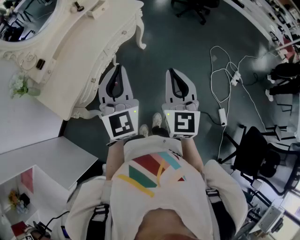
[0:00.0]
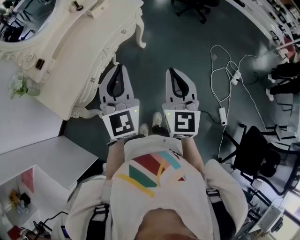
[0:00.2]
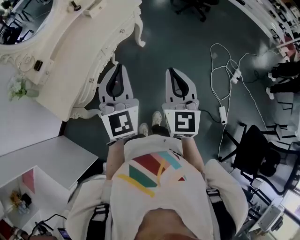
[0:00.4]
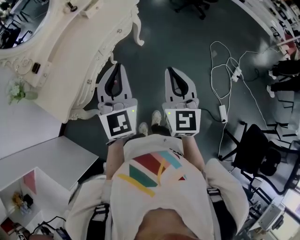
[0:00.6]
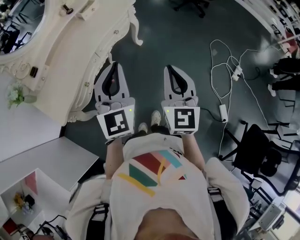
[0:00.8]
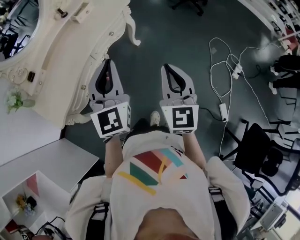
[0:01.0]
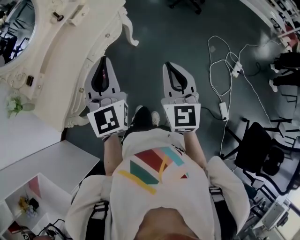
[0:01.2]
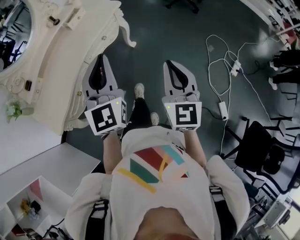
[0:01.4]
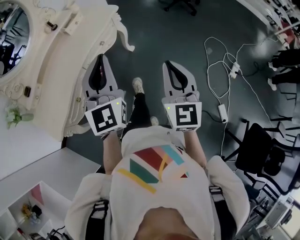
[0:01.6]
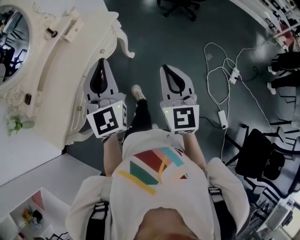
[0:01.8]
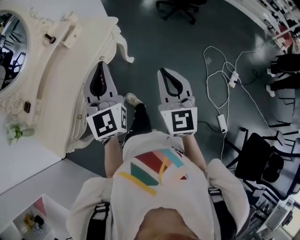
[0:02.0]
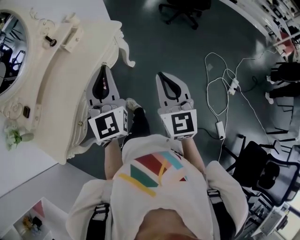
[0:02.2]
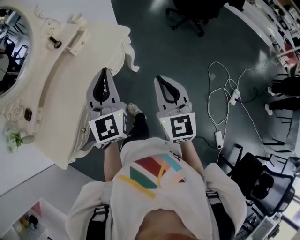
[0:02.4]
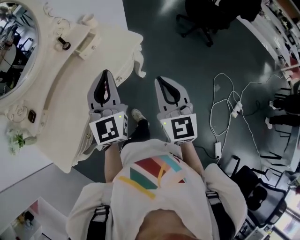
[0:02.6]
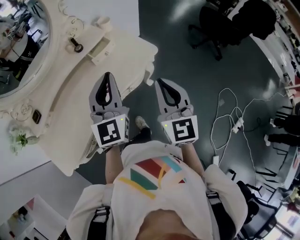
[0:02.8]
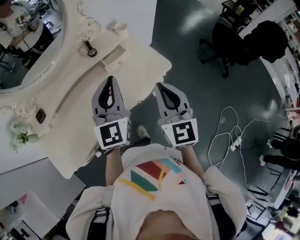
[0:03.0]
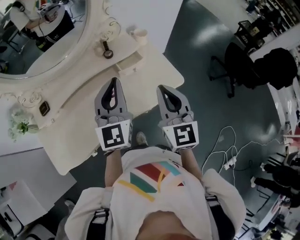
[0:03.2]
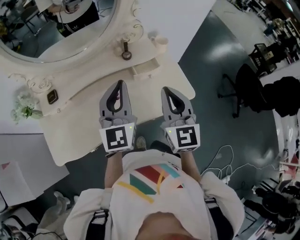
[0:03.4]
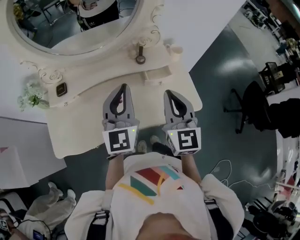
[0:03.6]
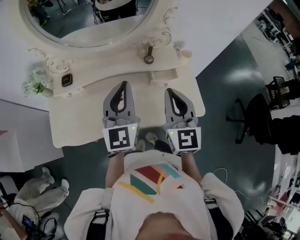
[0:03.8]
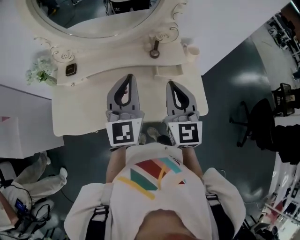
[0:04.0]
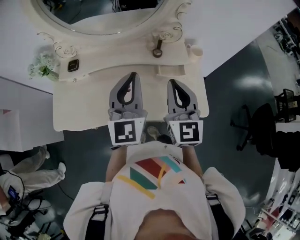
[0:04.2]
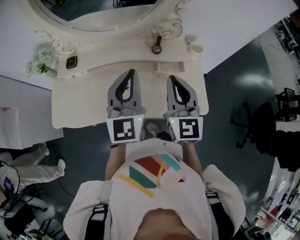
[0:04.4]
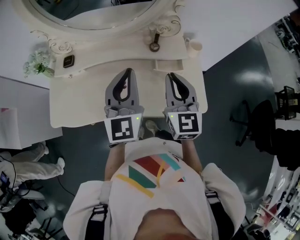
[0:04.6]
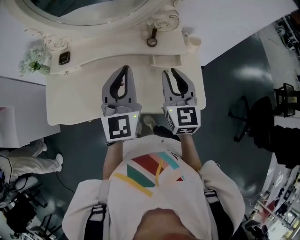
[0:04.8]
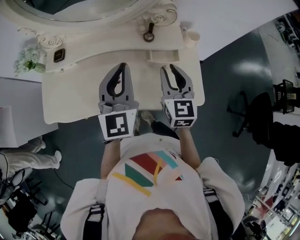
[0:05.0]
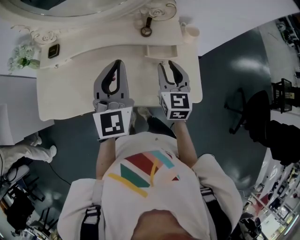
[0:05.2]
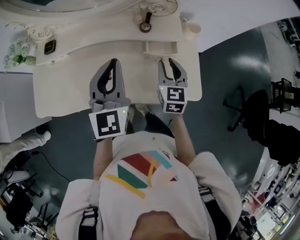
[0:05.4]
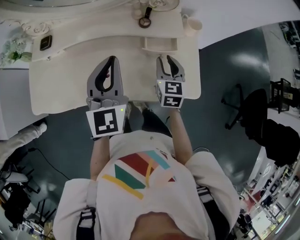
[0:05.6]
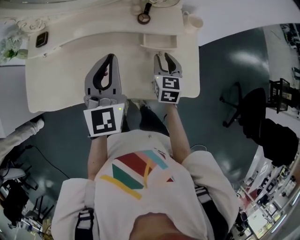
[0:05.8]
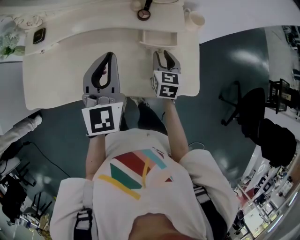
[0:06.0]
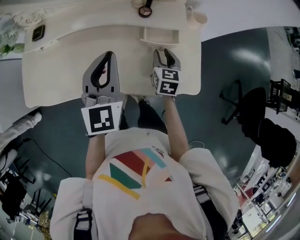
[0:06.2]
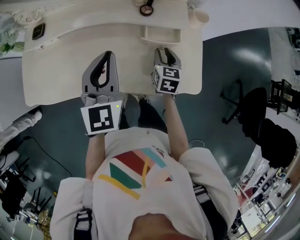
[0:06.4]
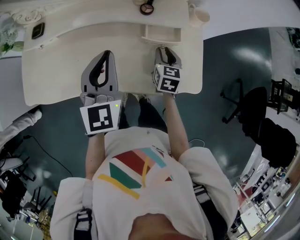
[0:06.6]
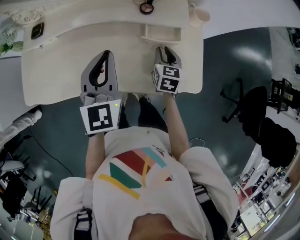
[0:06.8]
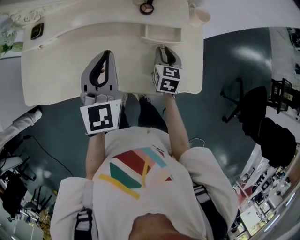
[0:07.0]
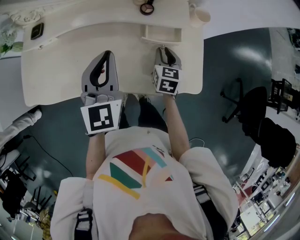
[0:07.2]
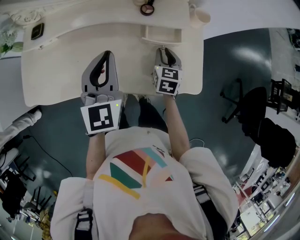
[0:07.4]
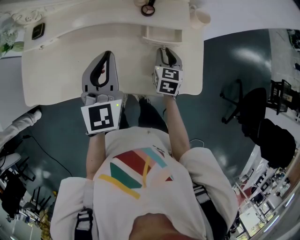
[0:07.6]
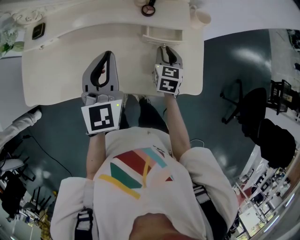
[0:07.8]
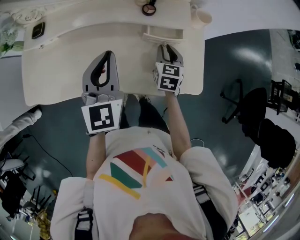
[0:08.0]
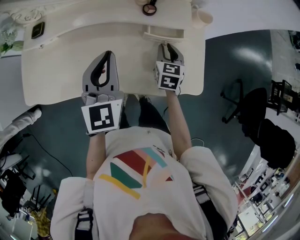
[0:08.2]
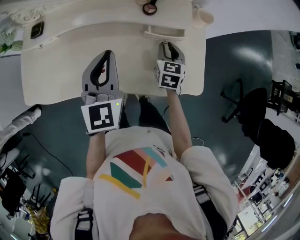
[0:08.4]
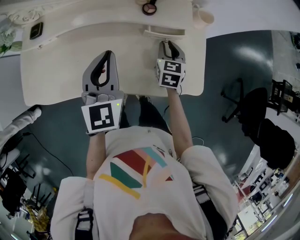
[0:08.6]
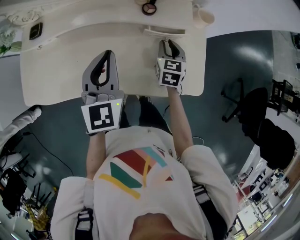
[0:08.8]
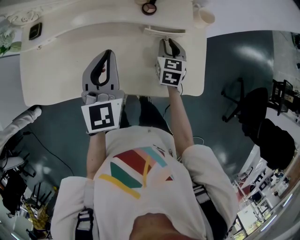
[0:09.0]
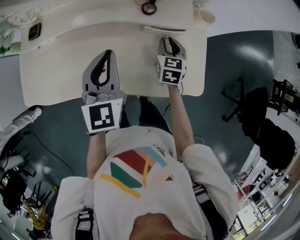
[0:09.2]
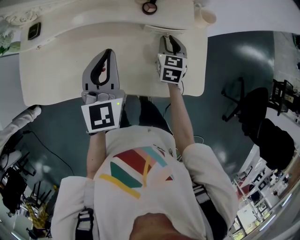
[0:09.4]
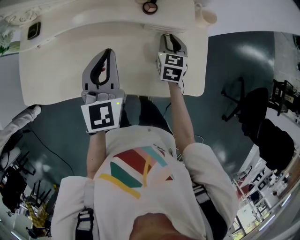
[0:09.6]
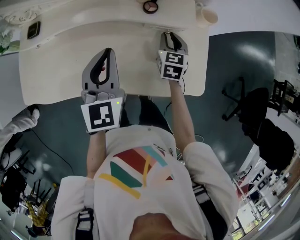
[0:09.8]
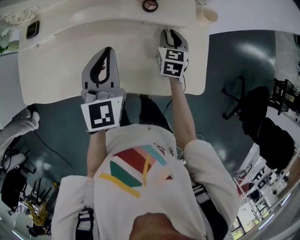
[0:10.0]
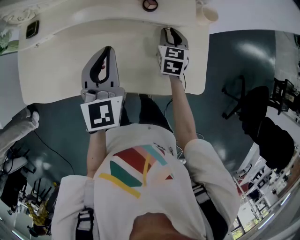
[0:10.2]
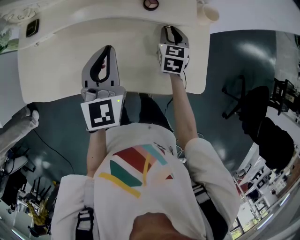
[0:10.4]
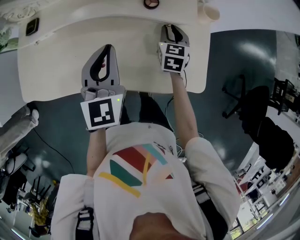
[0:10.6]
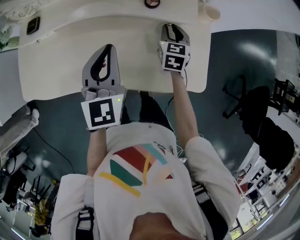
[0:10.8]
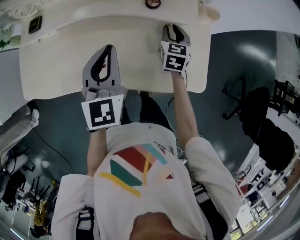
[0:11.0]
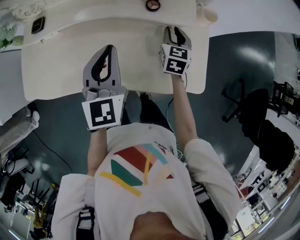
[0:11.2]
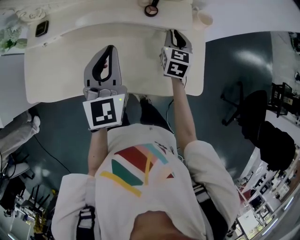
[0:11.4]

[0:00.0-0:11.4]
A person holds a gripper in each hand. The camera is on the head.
0:00.0 to 0:01.4: The left gripper moves forward and to the right, some 15 cm. Meanwhile the right gripper heads to the right and forward, covering about 15 cm.
0:01.4 to 0:02.8: The two grippers go about 35 cm forward. The right gripper turns by about 20 degrees.
0:02.8 to 0:04.2: The left gripper changes place by roughly 20 cm, and rotates some 40 degrees. Meanwhile the right gripper changes place by some 25 cm, and changes its angle by some 40 degrees.
0:04.2 to 0:05.6: The left gripper is displaced downward by roughly 10 cm, while the right gripper heads downward, covering approximately 20 cm, rotates roughly 30 degrees, and opens up.
0:05.6 to 0:07.2: The right gripper moves downward, approximately 10 cm.
0:07.2 to 0:08.6: The grippers make only small movements.
0:08.6 to 0:10.0: The grippers move only a little.
0:10.0 to 0:11.4: The right gripper shifts roughly 5 cm upward.

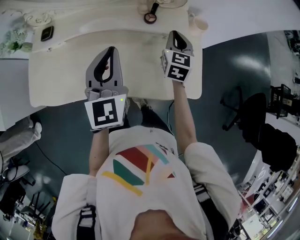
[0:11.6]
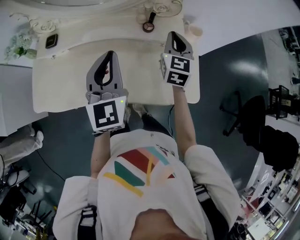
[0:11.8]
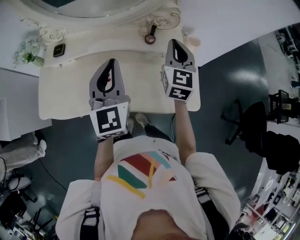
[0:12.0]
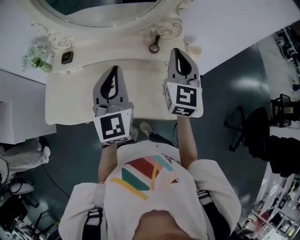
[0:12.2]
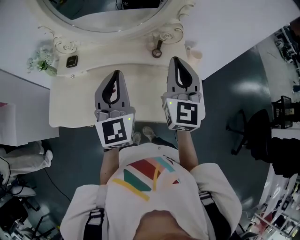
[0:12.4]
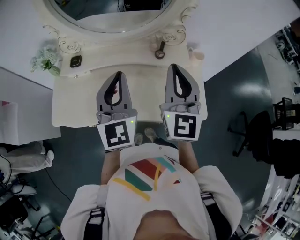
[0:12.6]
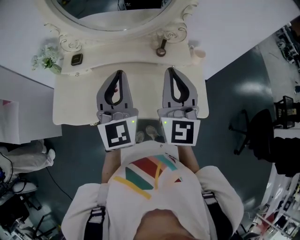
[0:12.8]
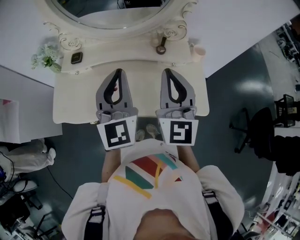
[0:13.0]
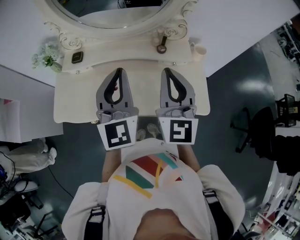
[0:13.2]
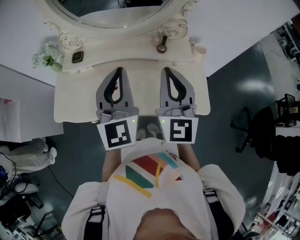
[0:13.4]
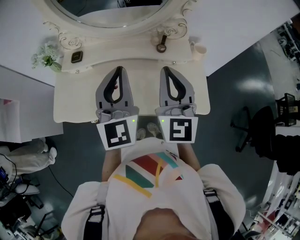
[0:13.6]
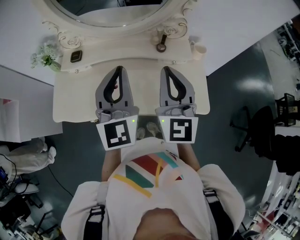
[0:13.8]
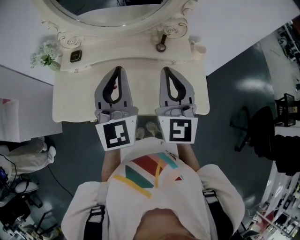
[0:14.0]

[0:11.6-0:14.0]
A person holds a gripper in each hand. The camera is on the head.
0:11.6 to 0:12.8: The right gripper is displaced upward, backward and to the left by about 30 cm, and turns by roughly 30 degrees. The left gripper heads upward and backward, covering about 10 cm.
0:12.8 to 0:14.0: The grippers move only a little.

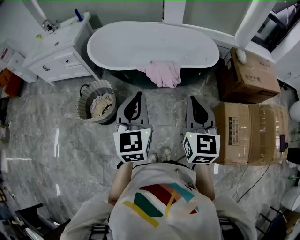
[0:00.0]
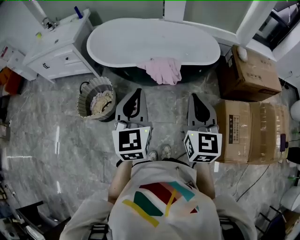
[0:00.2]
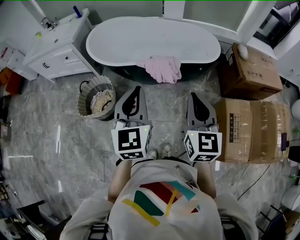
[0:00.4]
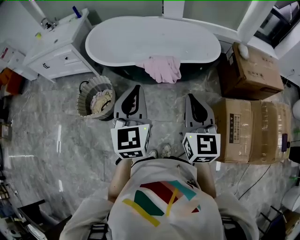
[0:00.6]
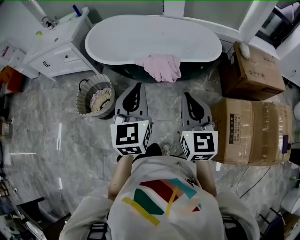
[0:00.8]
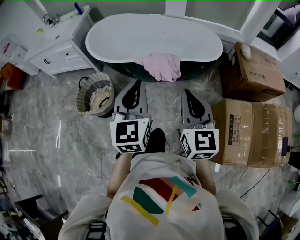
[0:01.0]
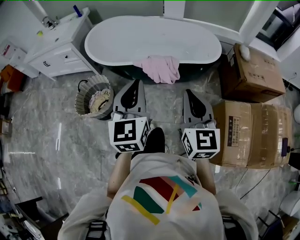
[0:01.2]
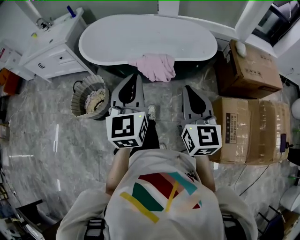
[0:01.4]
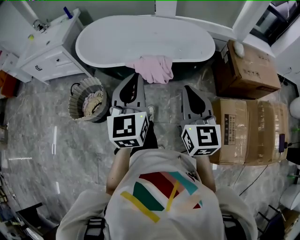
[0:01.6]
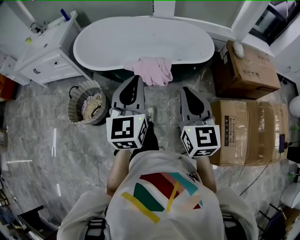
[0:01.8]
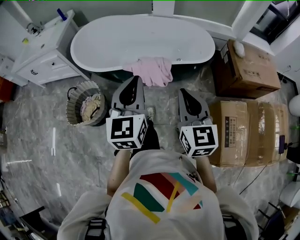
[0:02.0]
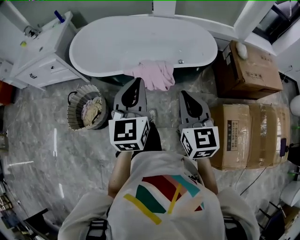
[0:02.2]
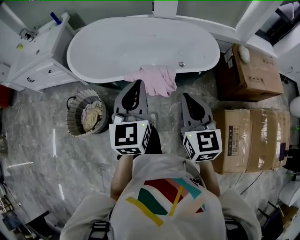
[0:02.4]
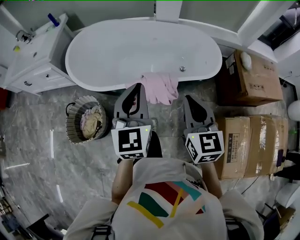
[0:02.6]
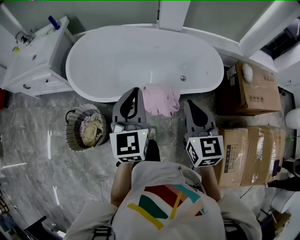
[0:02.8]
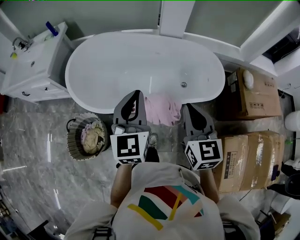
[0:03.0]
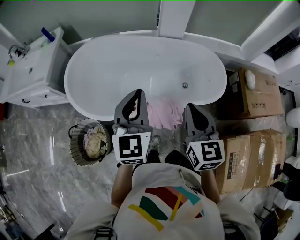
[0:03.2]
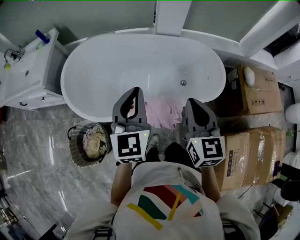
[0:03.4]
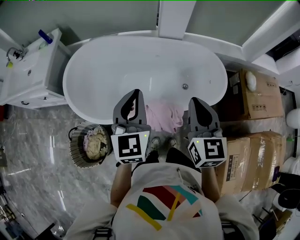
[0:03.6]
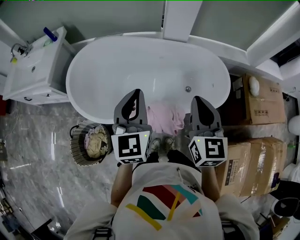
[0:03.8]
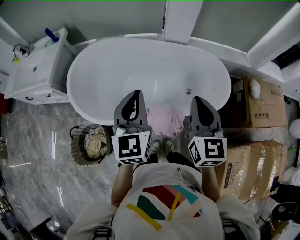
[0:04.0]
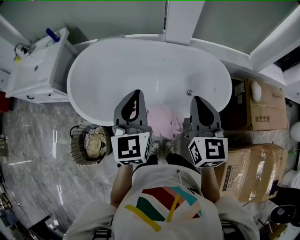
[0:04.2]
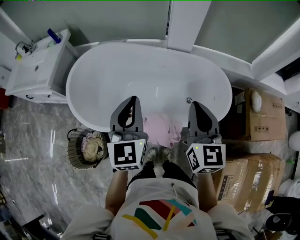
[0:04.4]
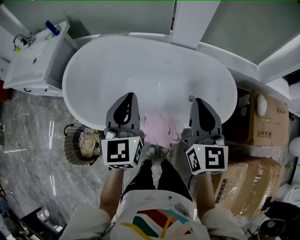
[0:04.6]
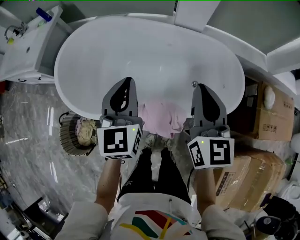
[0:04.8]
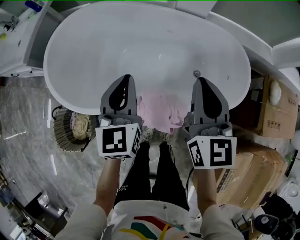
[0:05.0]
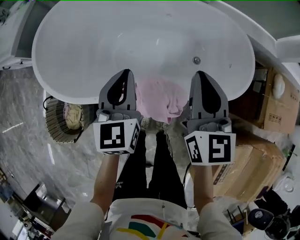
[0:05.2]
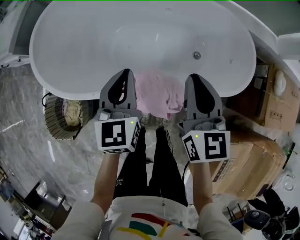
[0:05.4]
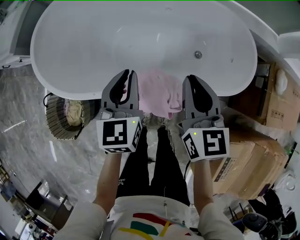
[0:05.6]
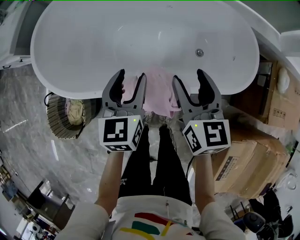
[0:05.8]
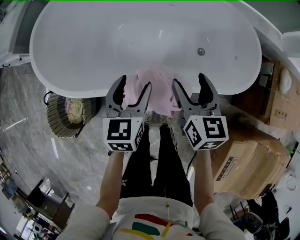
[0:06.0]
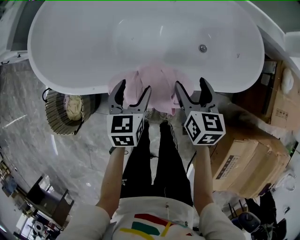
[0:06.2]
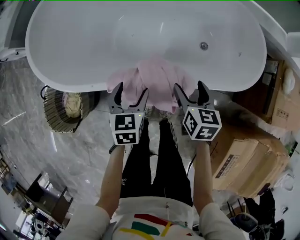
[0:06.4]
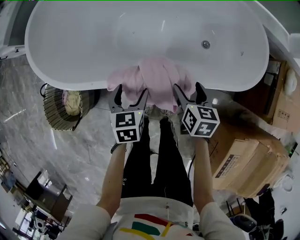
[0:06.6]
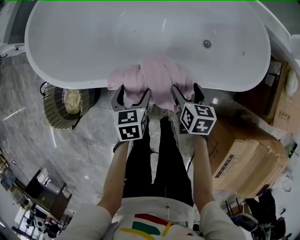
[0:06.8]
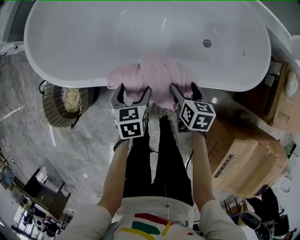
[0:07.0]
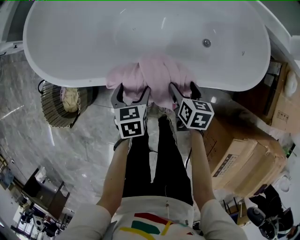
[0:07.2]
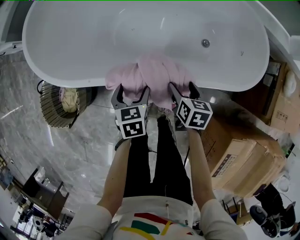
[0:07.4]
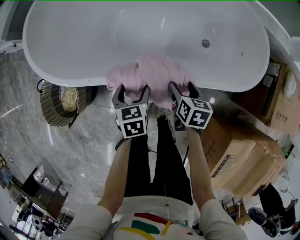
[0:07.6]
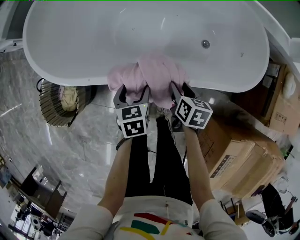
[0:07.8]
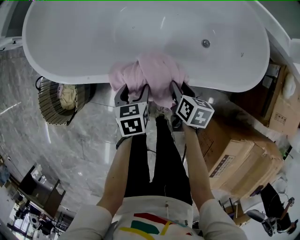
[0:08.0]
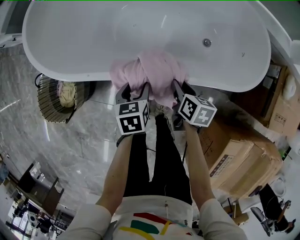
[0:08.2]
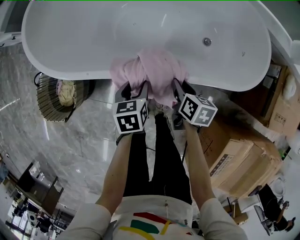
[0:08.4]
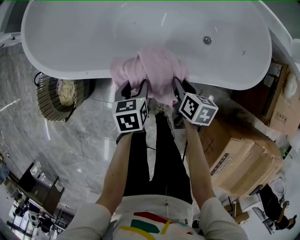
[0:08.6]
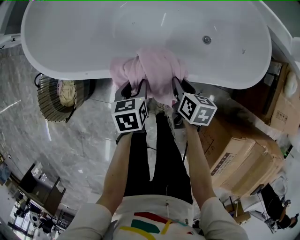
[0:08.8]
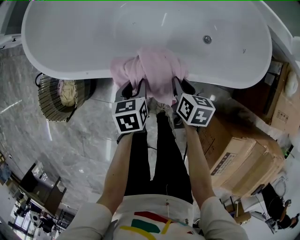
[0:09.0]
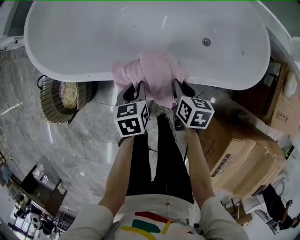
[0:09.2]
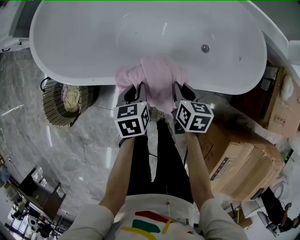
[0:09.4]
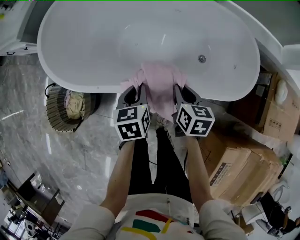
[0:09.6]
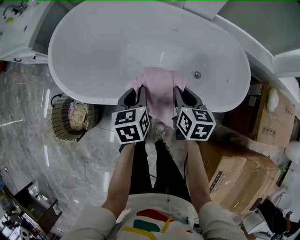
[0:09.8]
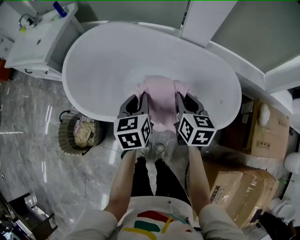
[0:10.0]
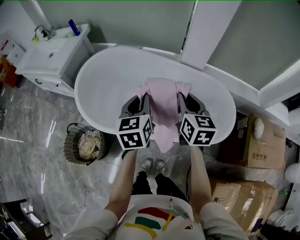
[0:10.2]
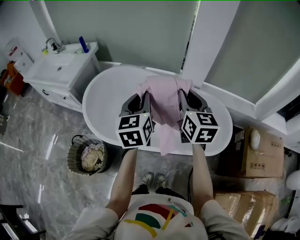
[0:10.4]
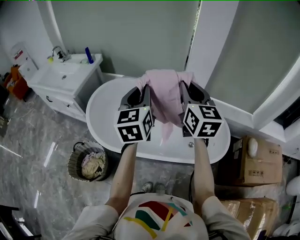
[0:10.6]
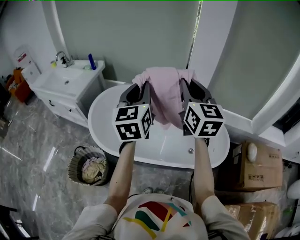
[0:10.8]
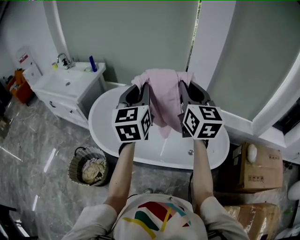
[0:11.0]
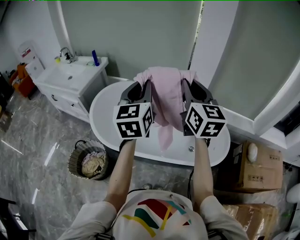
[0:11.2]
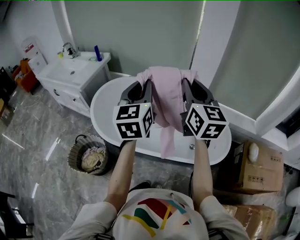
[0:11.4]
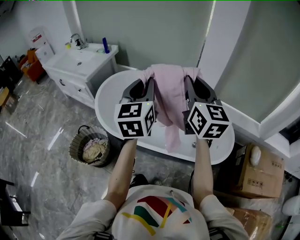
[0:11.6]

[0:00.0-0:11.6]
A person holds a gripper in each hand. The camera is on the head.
0:00.0 to 0:01.4: The right gripper ends up some 5 cm from where it was, while the left gripper travels to the right and forward by about 10 cm.
0:01.4 to 0:02.8: The two grippers go roughly 30 cm forward.
0:02.8 to 0:04.4: Both grippers move forward, roughly 20 cm.
0:04.4 to 0:05.8: Both grippers travel together downward, about 25 cm. The left gripper swivels some 20 degrees, and opens, while the right gripper opens.
0:05.8 to 0:07.2: The left gripper heads downward and backward, covering about 20 cm, turns by roughly 30 degrees, and opens, while the right gripper heads downward, covering some 25 cm, and rotates roughly 30 degrees.
0:07.2 to 0:08.8: The right gripper closes; the left gripper closes up.
0:08.8 to 0:10.2: Both grippers travel together upward, some 40 cm. The left gripper tilts its fingers about 30 degrees upward. The right gripper swivels approximately 40 degrees.
0:10.2 to 0:11.6: Both grippers move upward, roughly 20 cm. The right gripper turns by approximately 30 degrees. Meanwhile the left gripper rotates approximately 20 degrees.
